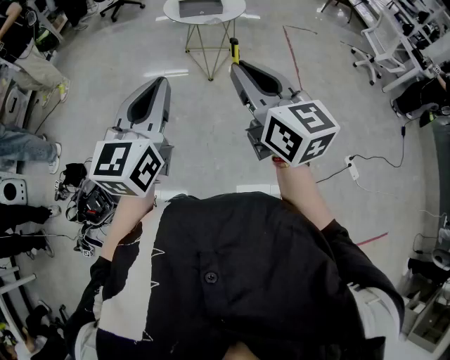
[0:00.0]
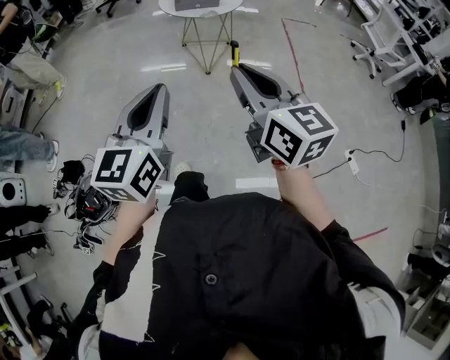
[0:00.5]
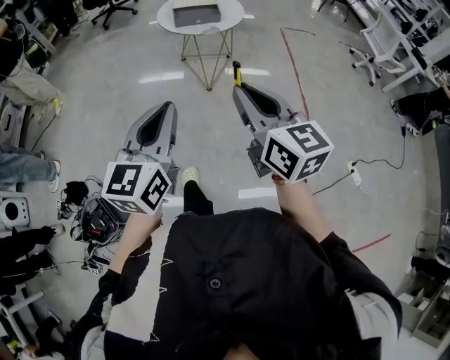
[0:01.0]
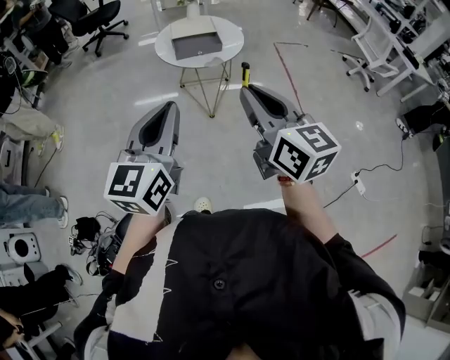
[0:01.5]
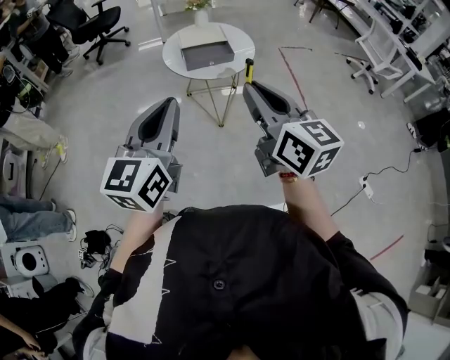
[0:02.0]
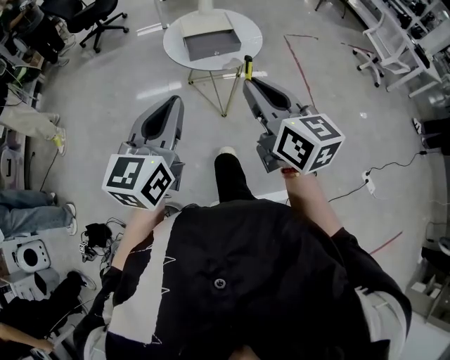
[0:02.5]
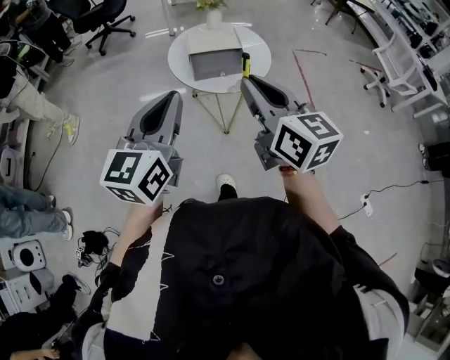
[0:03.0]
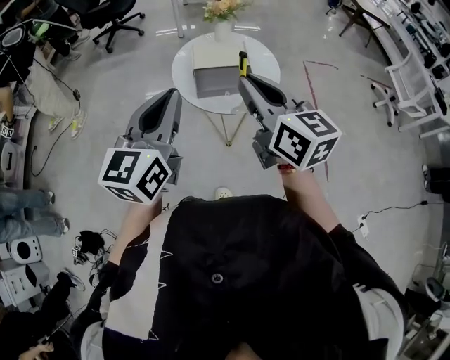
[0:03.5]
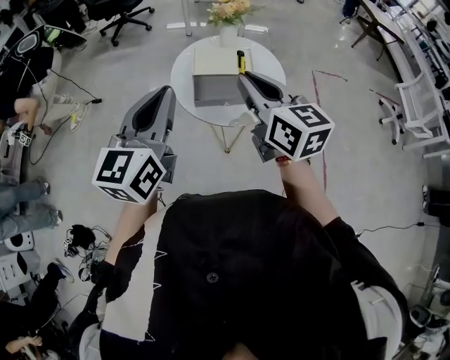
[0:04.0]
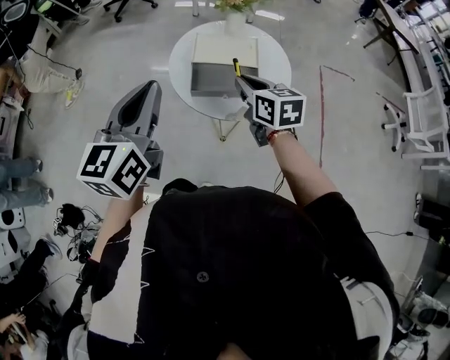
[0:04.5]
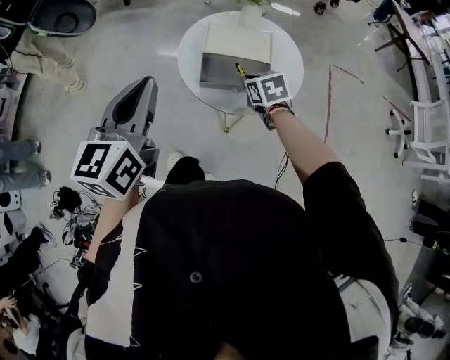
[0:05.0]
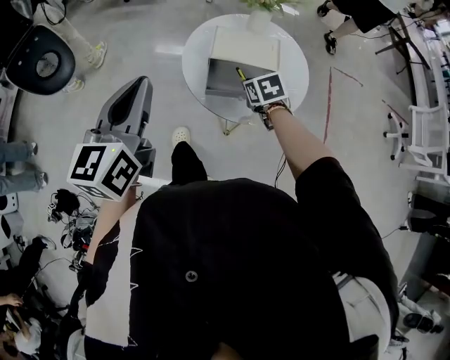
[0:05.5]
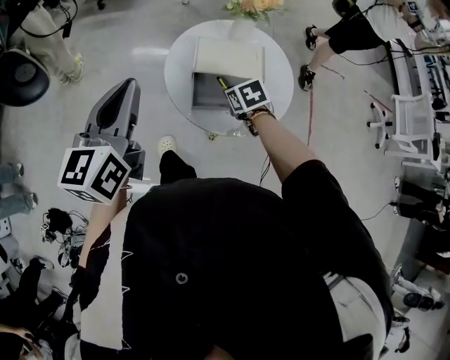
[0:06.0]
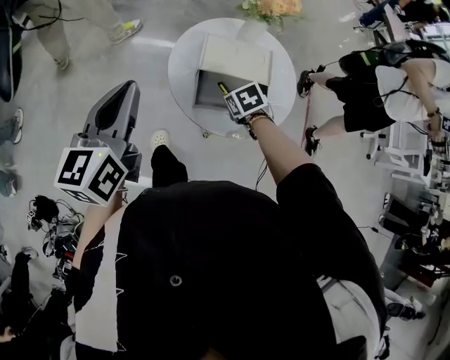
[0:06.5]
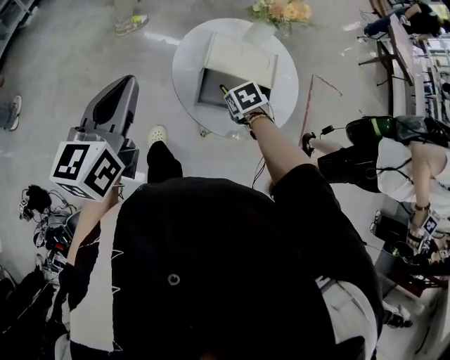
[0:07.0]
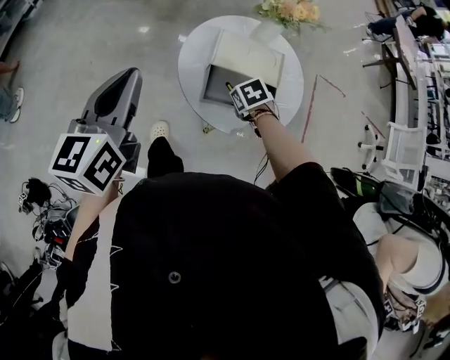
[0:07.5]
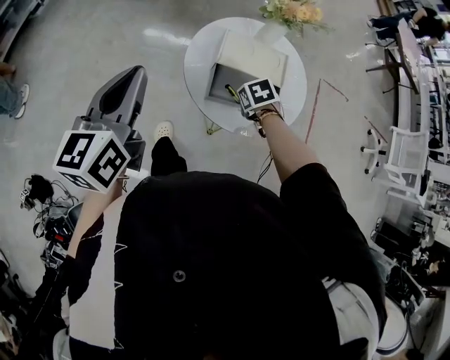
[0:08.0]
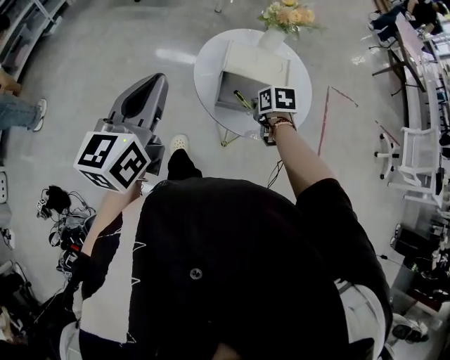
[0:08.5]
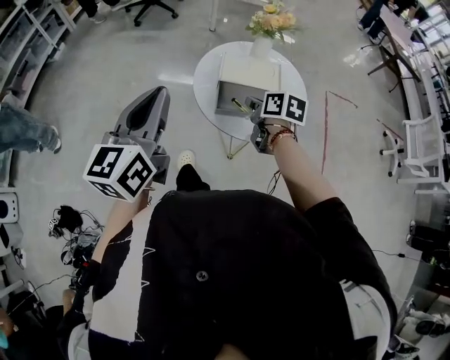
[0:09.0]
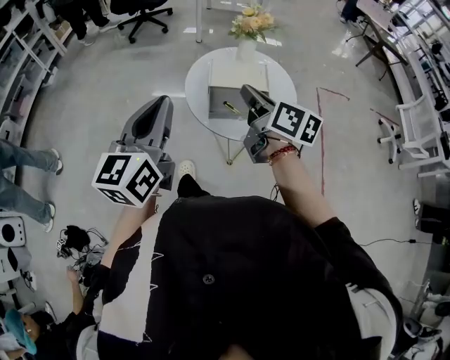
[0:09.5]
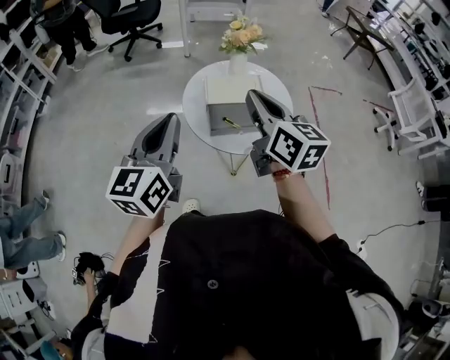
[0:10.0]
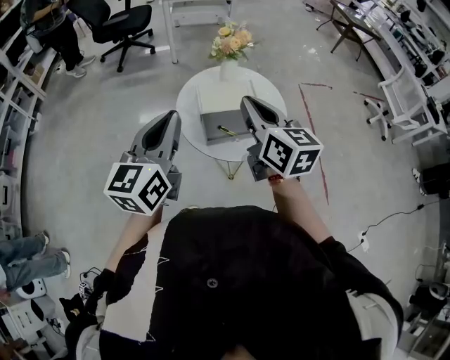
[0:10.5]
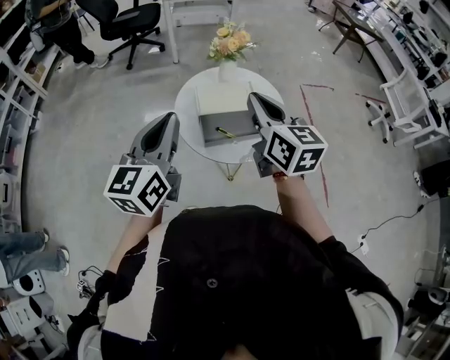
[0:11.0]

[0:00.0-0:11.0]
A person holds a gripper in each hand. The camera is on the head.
0:00.0 to 0:02.0: Both grippers travel together forward, some 30 cm.
0:02.0 to 0:03.5: The two grippers go some 25 cm forward.
0:03.5 to 0:05.5: The right gripper goes approximately 40 cm downward and forward, and tilts its fingers approximately 50 degrees downward. The left gripper travels forward, downward and to the left by some 15 cm.
0:05.5 to 0:07.5: The left gripper shifts by approximately 5 cm.
0:07.5 to 0:09.0: The left gripper ends up about 10 cm from where it was. The right gripper shifts approximately 15 cm upward, and points its fingers about 40 degrees further upward.
0:09.0 to 0:11.0: The right gripper moves upward, some 20 cm, and points its fingers approximately 30 degrees further upward, while the left gripper shifts approximately 5 cm forward.

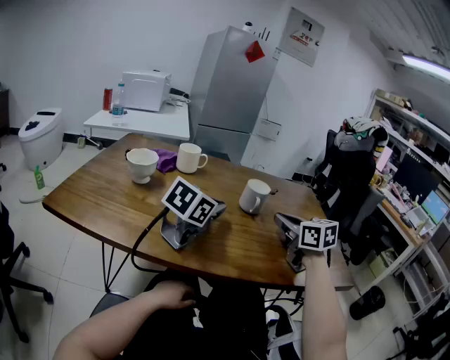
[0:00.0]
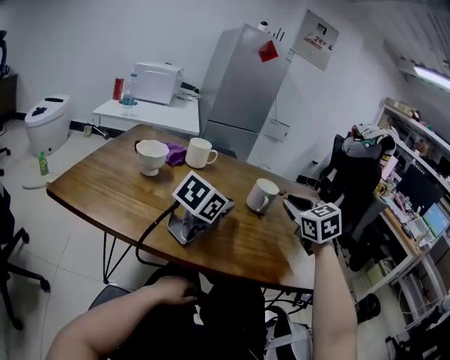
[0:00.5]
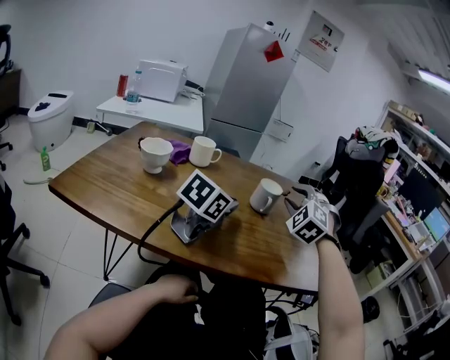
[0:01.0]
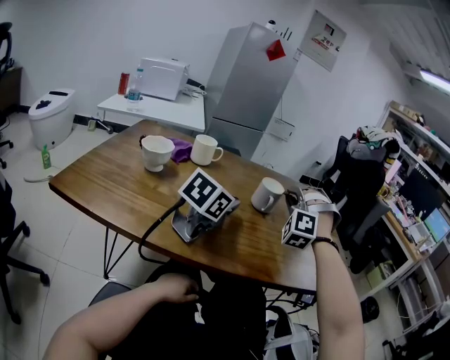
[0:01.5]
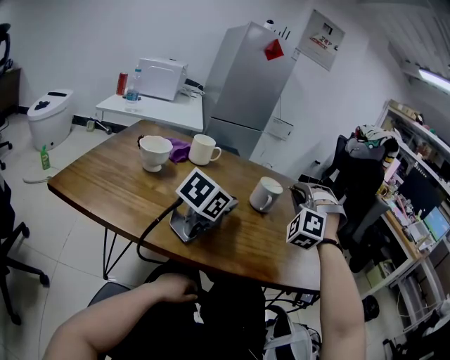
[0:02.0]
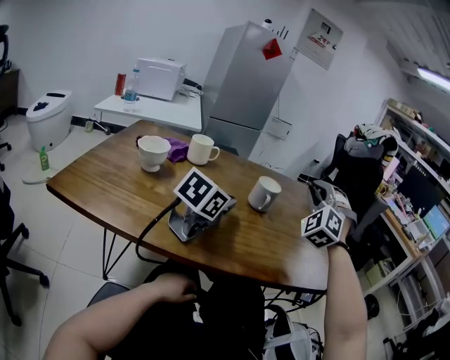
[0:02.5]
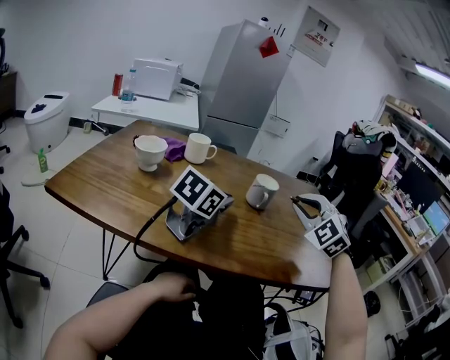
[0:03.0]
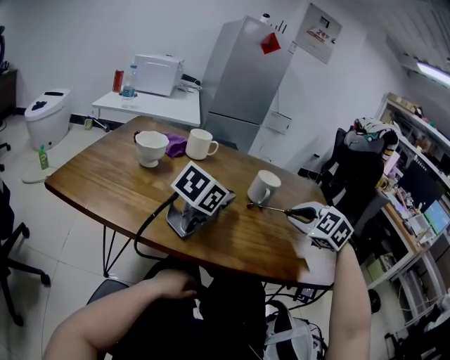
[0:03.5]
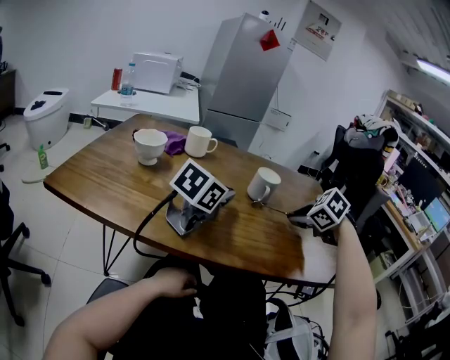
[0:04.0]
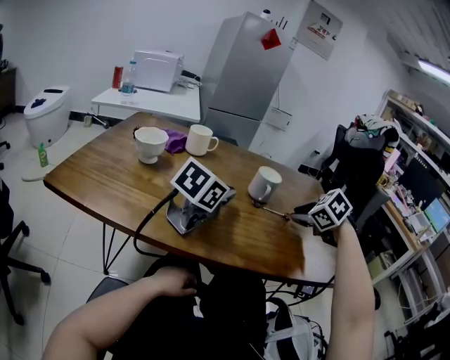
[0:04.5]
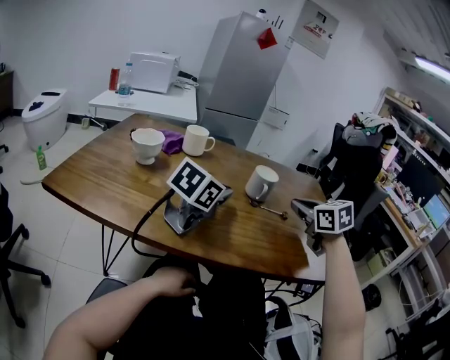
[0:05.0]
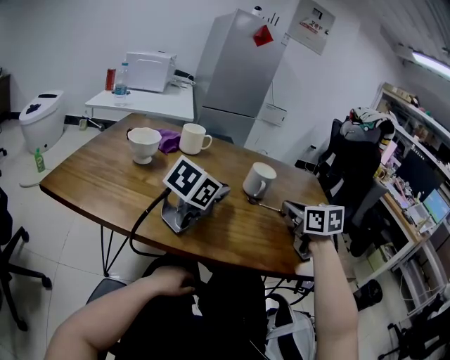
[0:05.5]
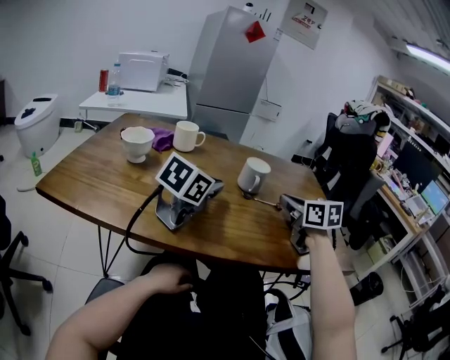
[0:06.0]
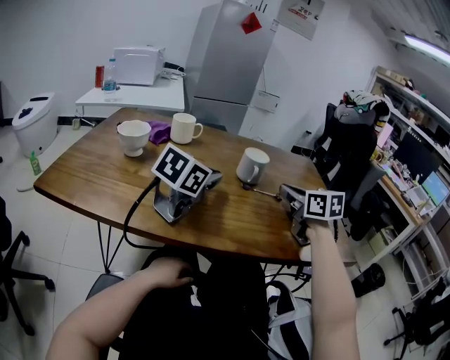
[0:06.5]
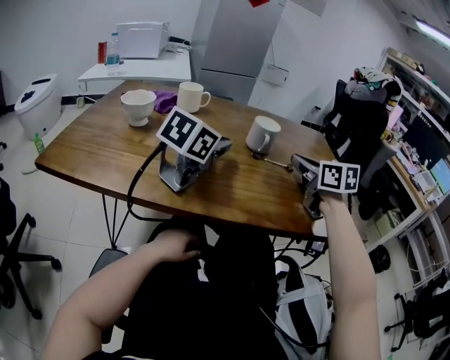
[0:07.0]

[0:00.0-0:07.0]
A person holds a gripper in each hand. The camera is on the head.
0:00.0 to 0:02.0: The right gripper goes about 5 cm upward, twists some 90 degrees counterclockwise, seen from behind, and opens, then closes again.
0:02.0 to 0:03.5: The right gripper shifts some 5 cm downward, and tilts its fingers roughly 30 degrees downward.
0:03.5 to 0:05.0: The right gripper rotates around the line of its fingers by some 40 degrees, clockwise from behind.
0:05.0 to 0:07.0: The grippers make only small movements.

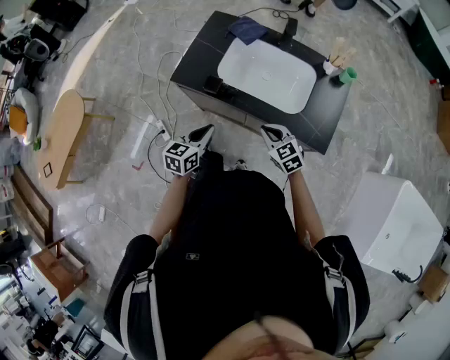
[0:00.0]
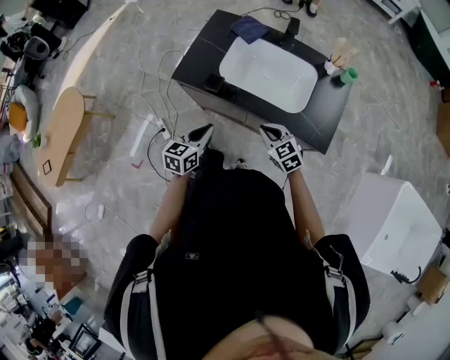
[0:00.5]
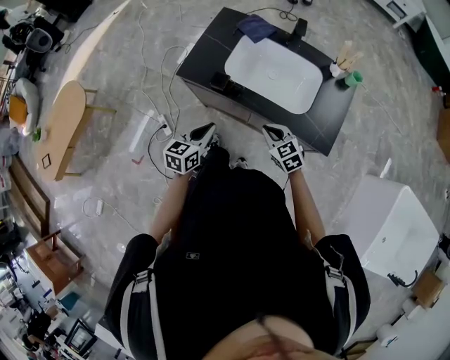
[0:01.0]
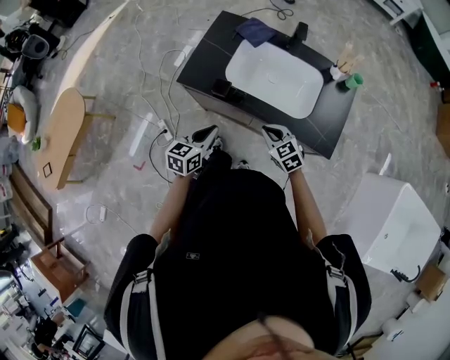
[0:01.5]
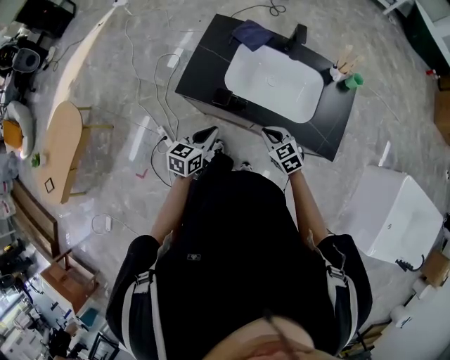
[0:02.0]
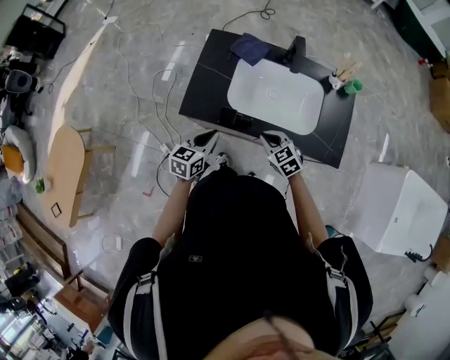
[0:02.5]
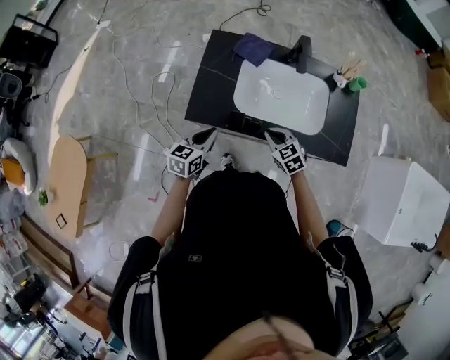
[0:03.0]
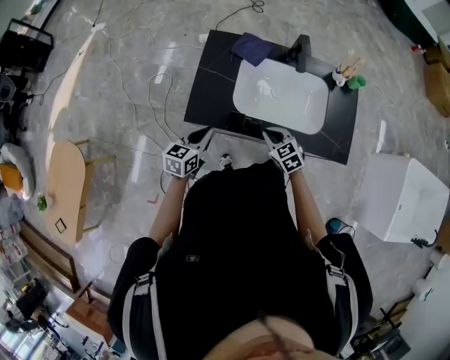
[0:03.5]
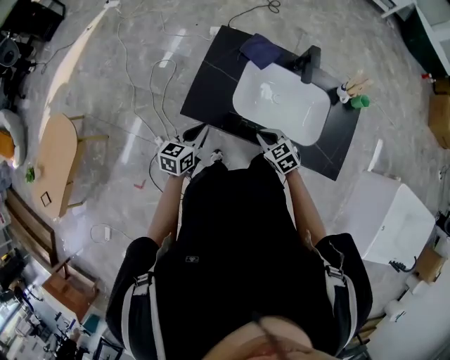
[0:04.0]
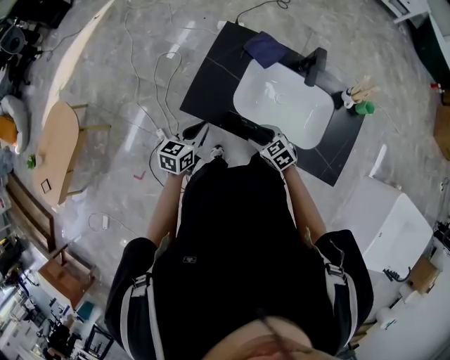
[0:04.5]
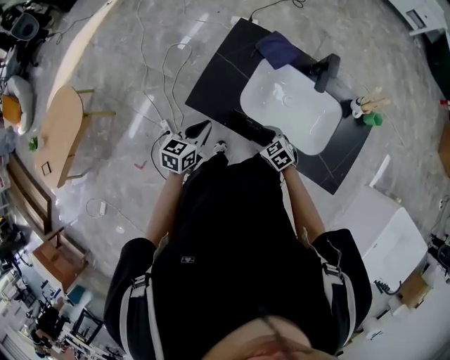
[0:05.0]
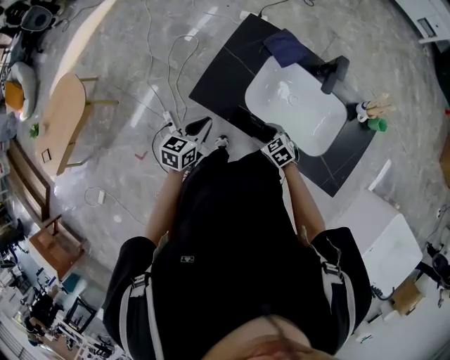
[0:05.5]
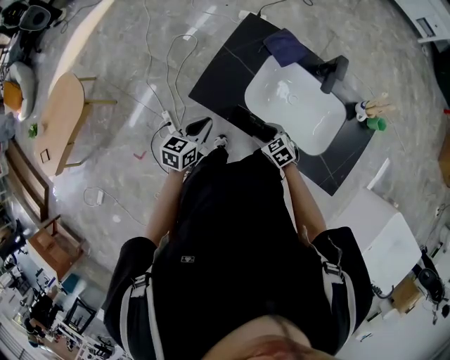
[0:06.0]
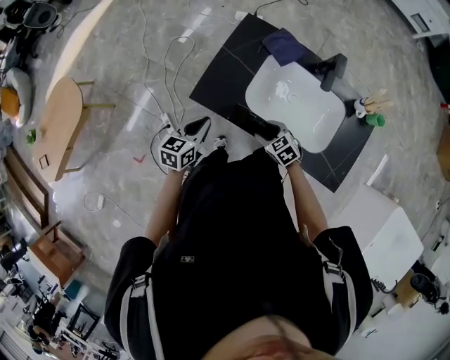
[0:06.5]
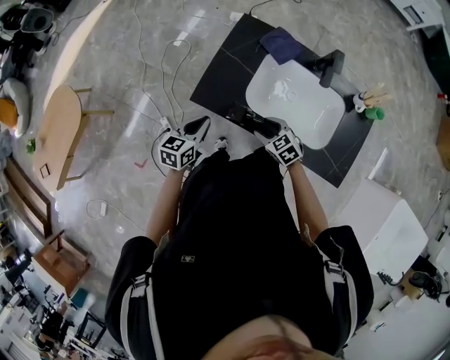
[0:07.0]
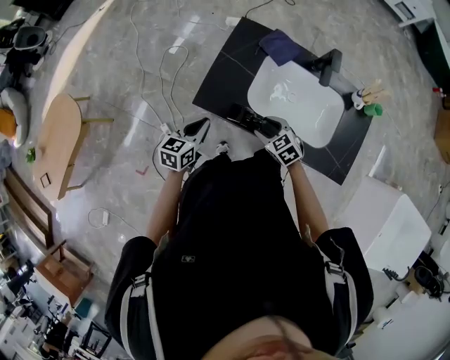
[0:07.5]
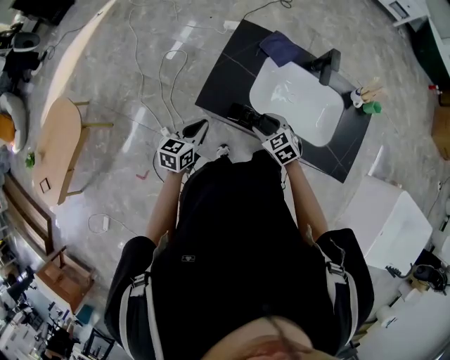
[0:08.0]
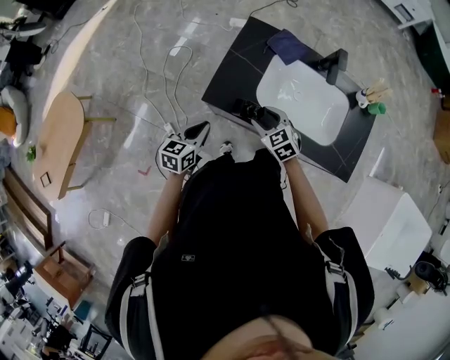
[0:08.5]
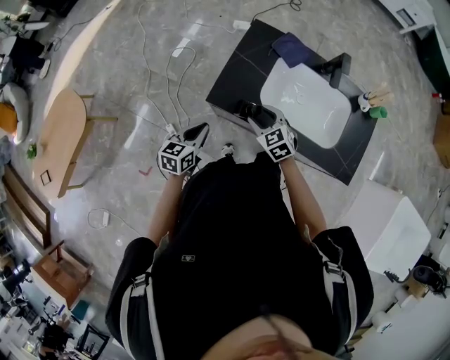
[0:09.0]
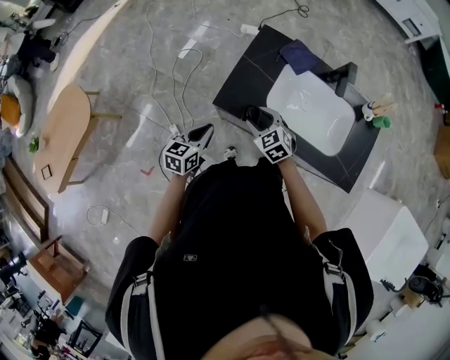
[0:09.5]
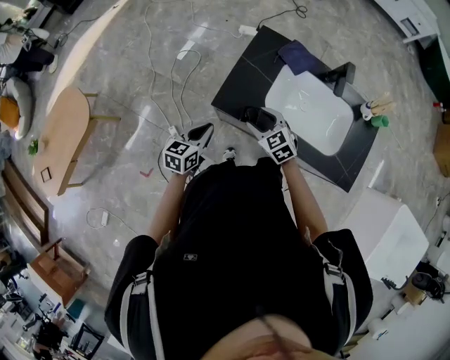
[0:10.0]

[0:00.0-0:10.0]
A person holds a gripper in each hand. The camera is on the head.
0:00.0 to 0:02.0: The two grippers go some 5 cm forward.
0:02.0 to 0:04.0: Both grippers move forward and to the left, roughly 10 cm.
0:04.0 to 0:06.0: The right gripper heads downward, covering about 10 cm, and opens.
0:06.0 to 0:08.0: The left gripper heads to the left, covering about 5 cm. The right gripper shifts approximately 10 cm upward and to the left.
0:08.0 to 0:10.0: The right gripper travels to the left by some 10 cm.
